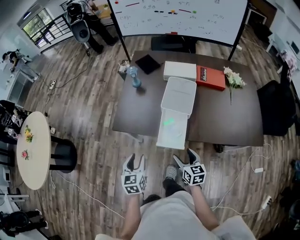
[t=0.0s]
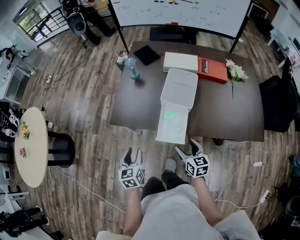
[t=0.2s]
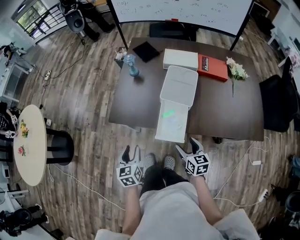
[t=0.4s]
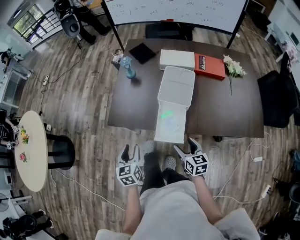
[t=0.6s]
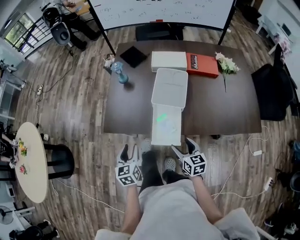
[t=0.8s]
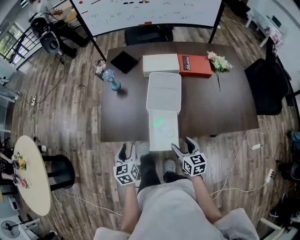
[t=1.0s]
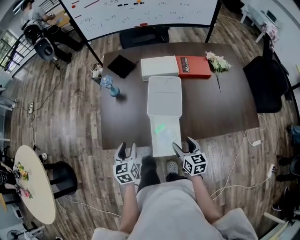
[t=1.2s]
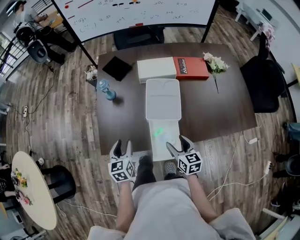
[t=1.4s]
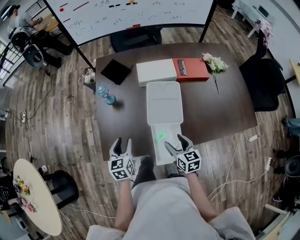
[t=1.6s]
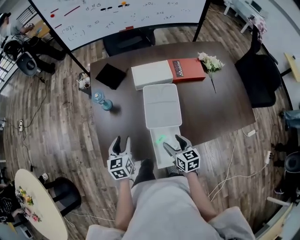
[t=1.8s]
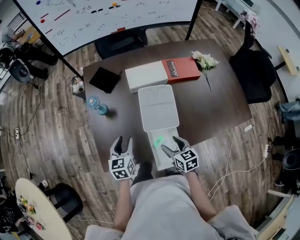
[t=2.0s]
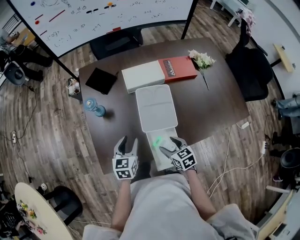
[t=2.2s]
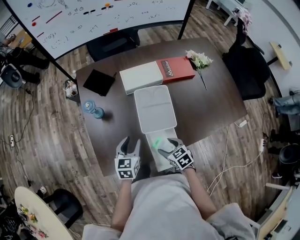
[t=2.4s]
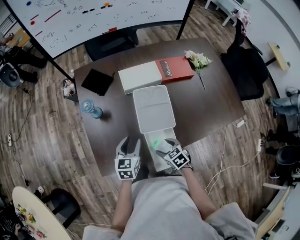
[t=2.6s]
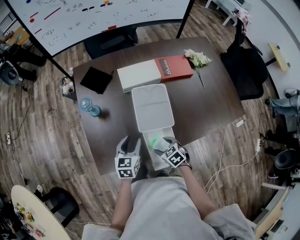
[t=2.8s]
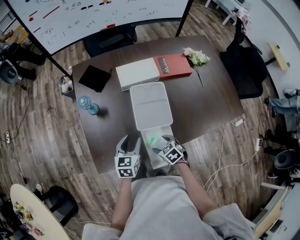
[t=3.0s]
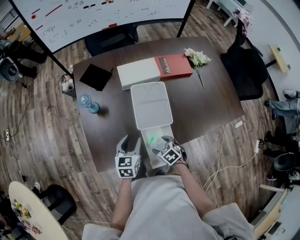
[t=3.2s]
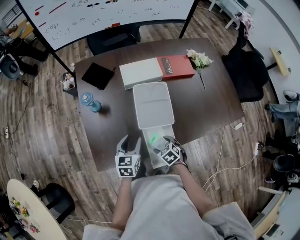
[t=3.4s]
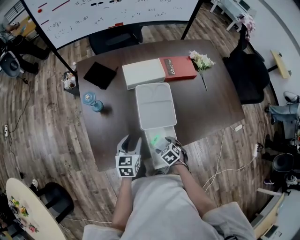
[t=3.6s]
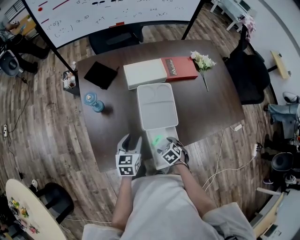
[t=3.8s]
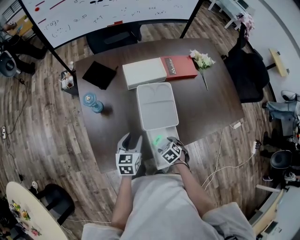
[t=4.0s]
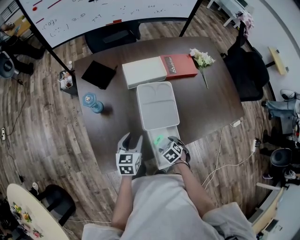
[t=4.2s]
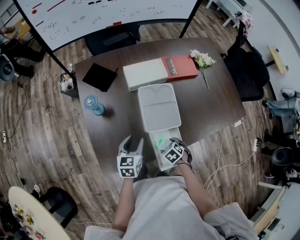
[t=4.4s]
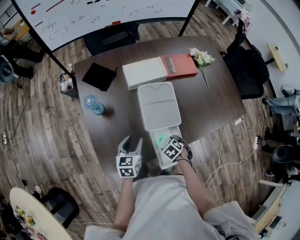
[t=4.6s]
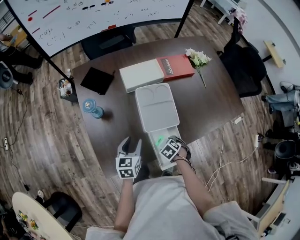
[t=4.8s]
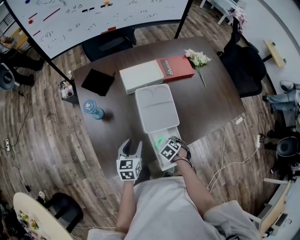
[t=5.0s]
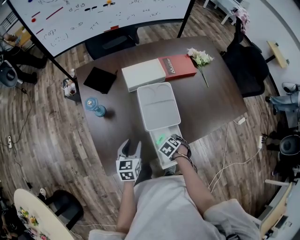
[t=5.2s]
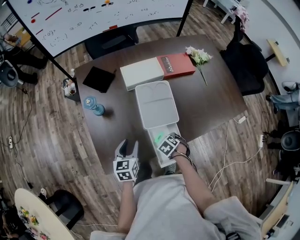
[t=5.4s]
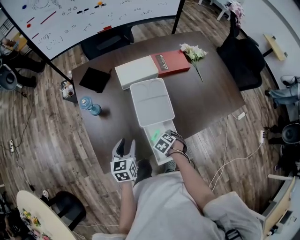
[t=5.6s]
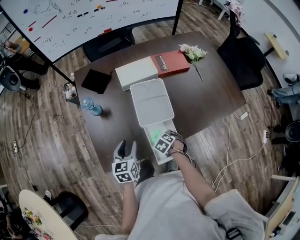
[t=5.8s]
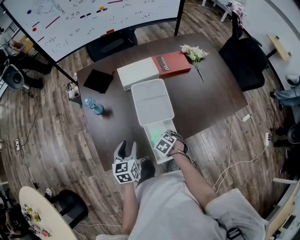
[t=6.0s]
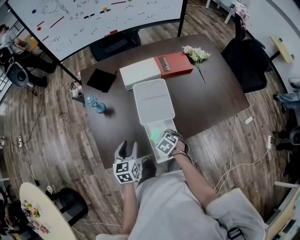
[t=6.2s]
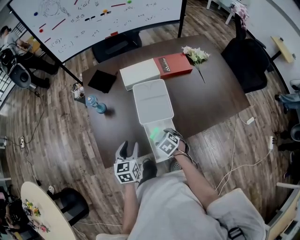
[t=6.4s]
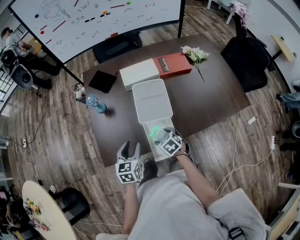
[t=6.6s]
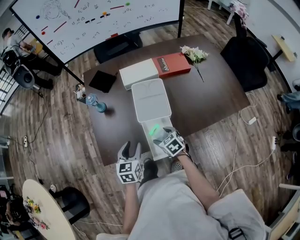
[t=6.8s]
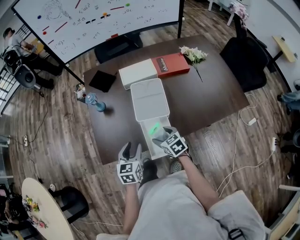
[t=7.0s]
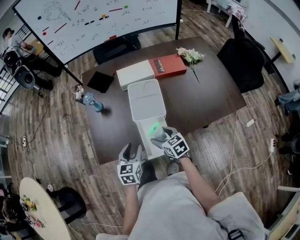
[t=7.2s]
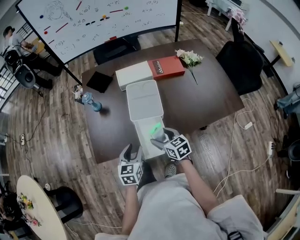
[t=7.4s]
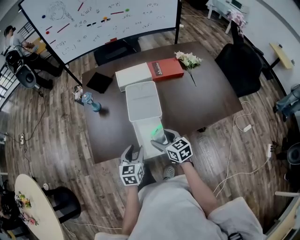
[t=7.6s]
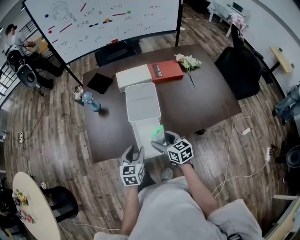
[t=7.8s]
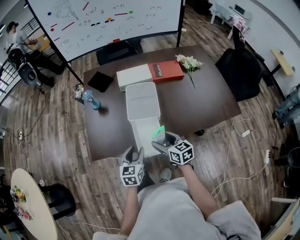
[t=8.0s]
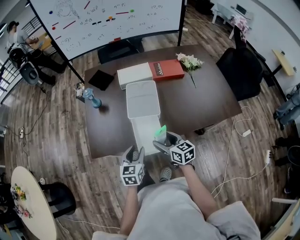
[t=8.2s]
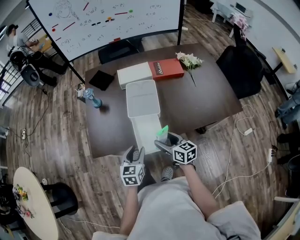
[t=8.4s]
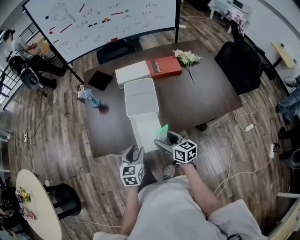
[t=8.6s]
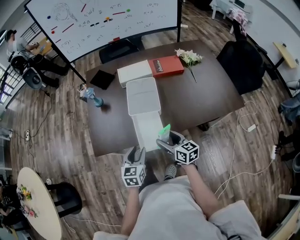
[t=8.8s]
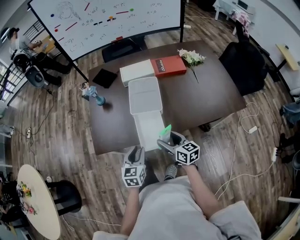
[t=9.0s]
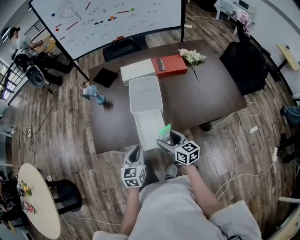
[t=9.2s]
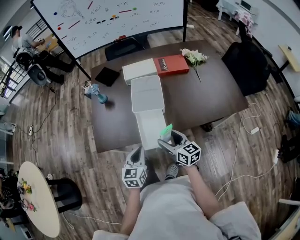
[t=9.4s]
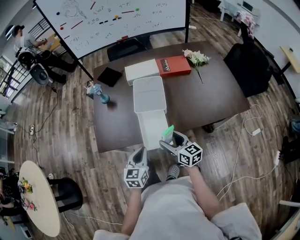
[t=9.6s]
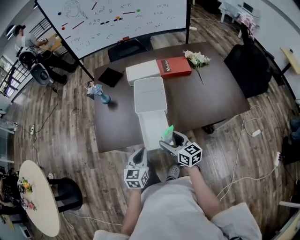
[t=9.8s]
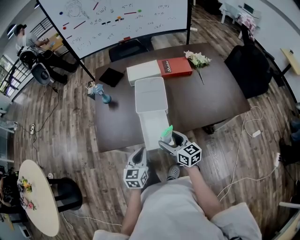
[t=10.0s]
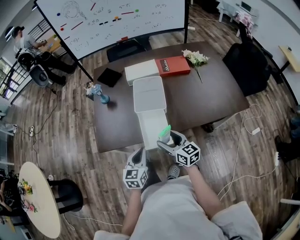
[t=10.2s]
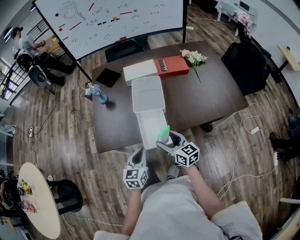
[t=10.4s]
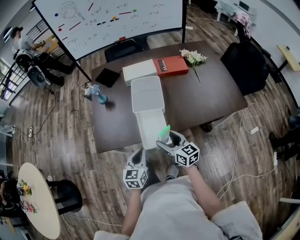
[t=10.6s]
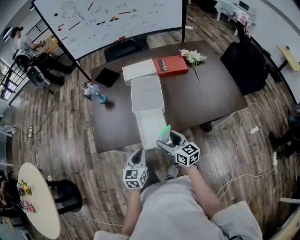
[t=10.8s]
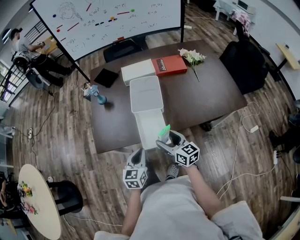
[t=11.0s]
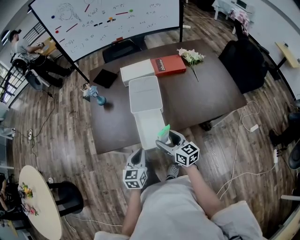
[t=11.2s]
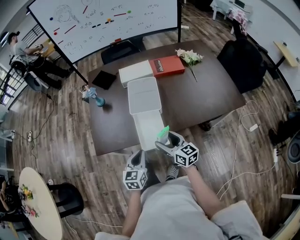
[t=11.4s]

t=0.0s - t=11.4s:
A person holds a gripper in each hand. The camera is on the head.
t=0.0s - t=1.4s: The right gripper goes approximately 15 cm forward. The left gripper heads forward, covering roughly 20 cm.
t=1.4s - t=2.8s: The right gripper moves downward, some 10 cm, and changes its angle by roughly 40 degrees; the left gripper travels to the right and forward by about 15 cm, and rotates some 30 degrees.
t=2.8s - t=4.2s: The right gripper travels downward by some 5 cm.
t=4.2s - t=5.6s: The grippers move only a little.
t=5.6s - t=7.2s: The right gripper moves upward, approximately 15 cm, and angles its fingers upward, by some 50 degrees, while the left gripper shifts by approximately 15 cm.
t=7.2s - t=8.6s: The right gripper shifts some 10 cm backward and to the right, and swivels some 30 degrees; the left gripper travels backward by approximately 5 cm.
t=8.6s - t=10.0s: The left gripper closes.
t=10.0s - t=11.4s: The grippers move only a little.

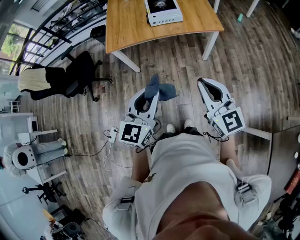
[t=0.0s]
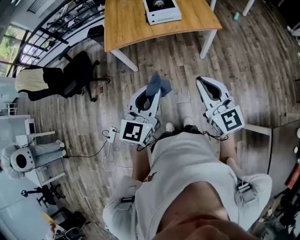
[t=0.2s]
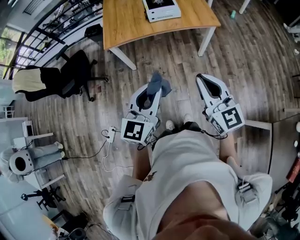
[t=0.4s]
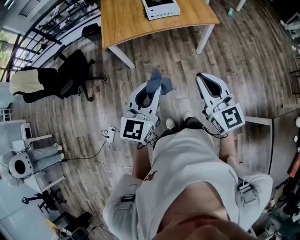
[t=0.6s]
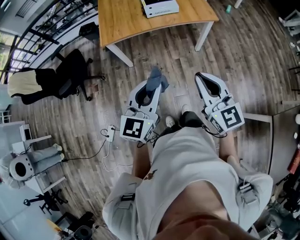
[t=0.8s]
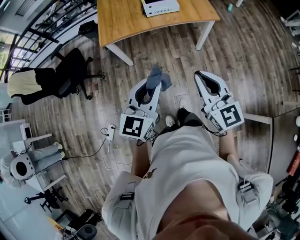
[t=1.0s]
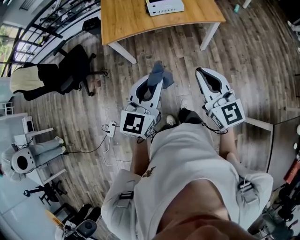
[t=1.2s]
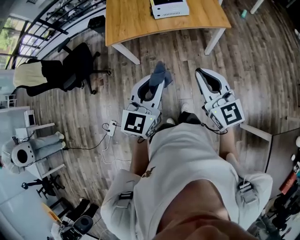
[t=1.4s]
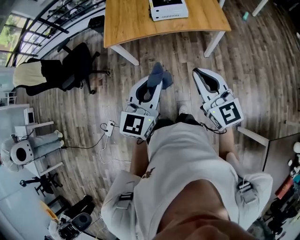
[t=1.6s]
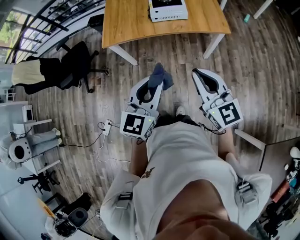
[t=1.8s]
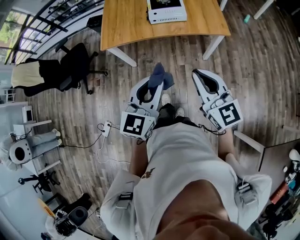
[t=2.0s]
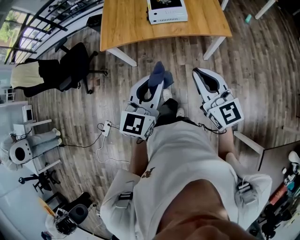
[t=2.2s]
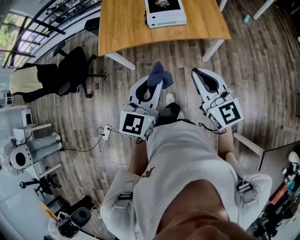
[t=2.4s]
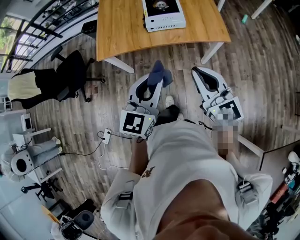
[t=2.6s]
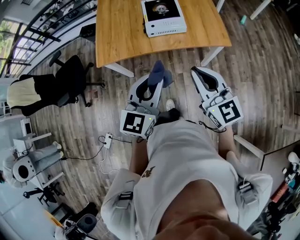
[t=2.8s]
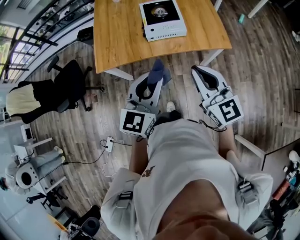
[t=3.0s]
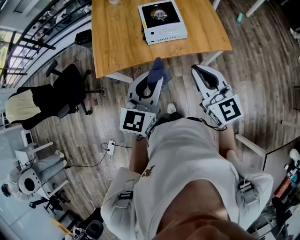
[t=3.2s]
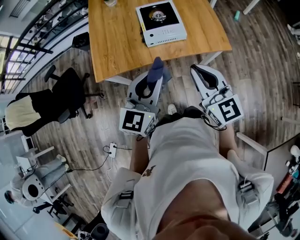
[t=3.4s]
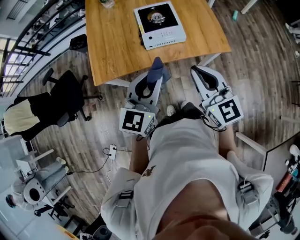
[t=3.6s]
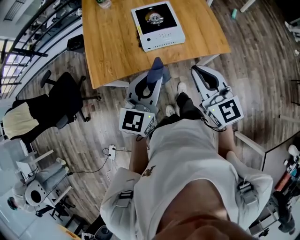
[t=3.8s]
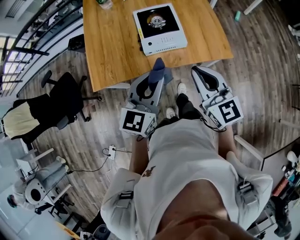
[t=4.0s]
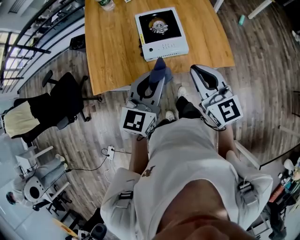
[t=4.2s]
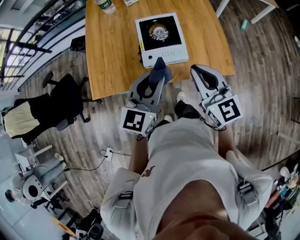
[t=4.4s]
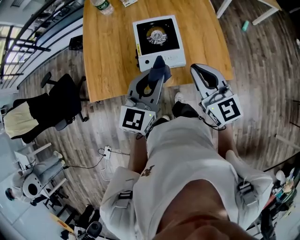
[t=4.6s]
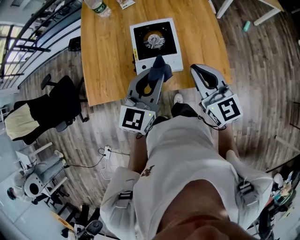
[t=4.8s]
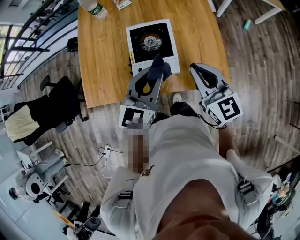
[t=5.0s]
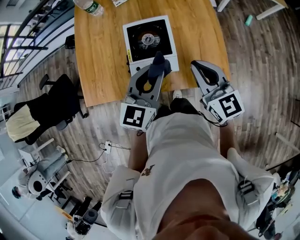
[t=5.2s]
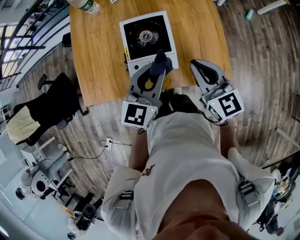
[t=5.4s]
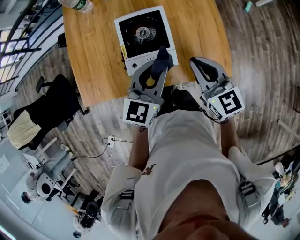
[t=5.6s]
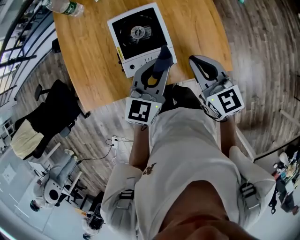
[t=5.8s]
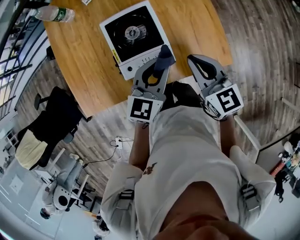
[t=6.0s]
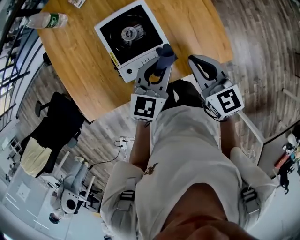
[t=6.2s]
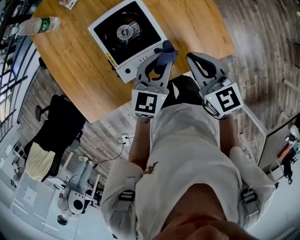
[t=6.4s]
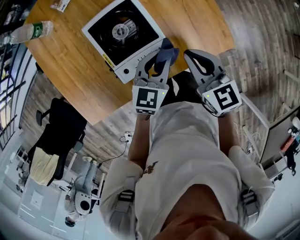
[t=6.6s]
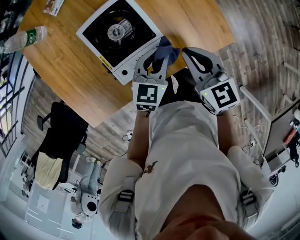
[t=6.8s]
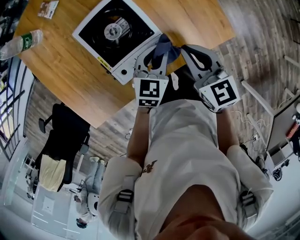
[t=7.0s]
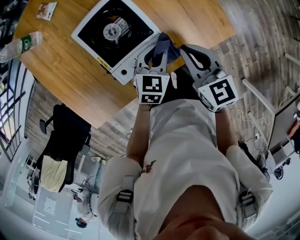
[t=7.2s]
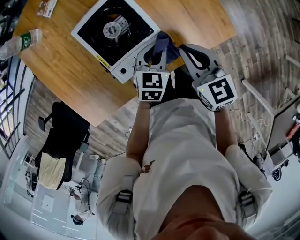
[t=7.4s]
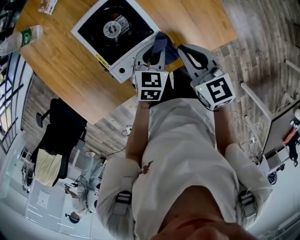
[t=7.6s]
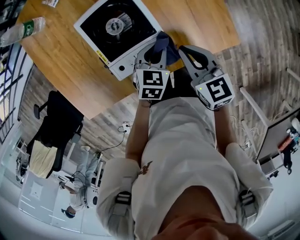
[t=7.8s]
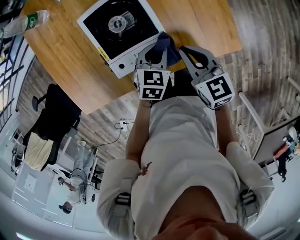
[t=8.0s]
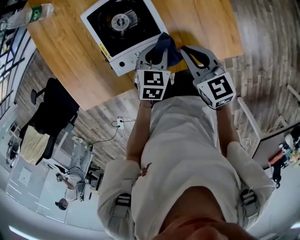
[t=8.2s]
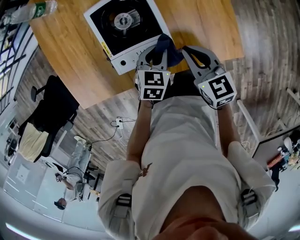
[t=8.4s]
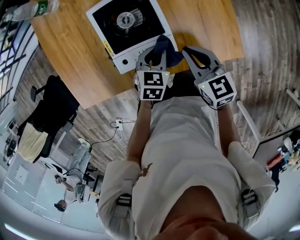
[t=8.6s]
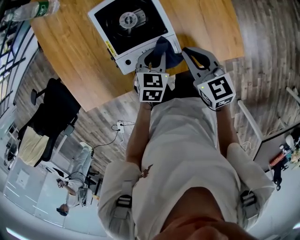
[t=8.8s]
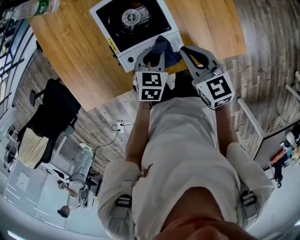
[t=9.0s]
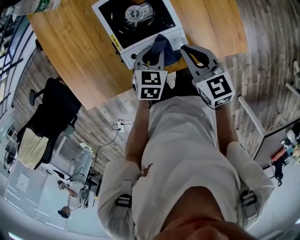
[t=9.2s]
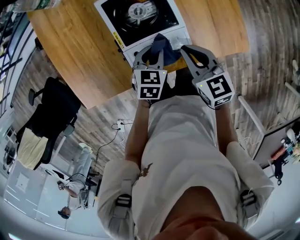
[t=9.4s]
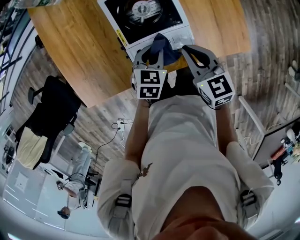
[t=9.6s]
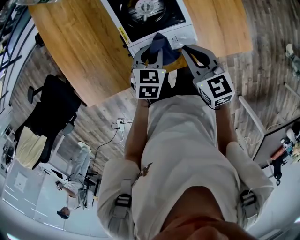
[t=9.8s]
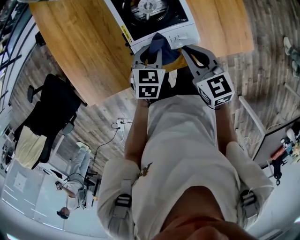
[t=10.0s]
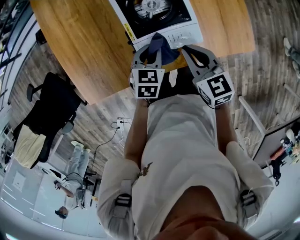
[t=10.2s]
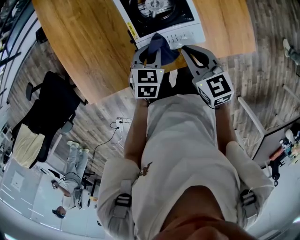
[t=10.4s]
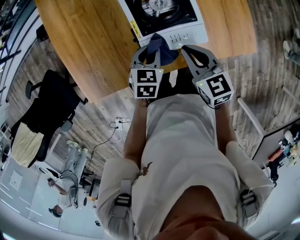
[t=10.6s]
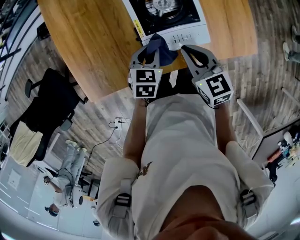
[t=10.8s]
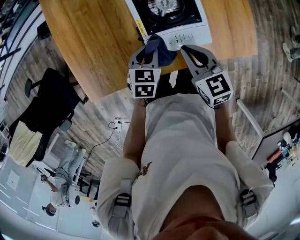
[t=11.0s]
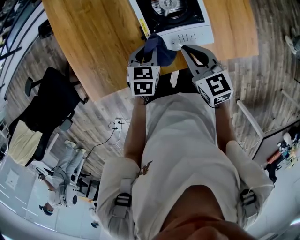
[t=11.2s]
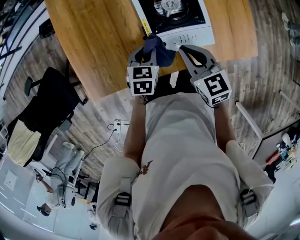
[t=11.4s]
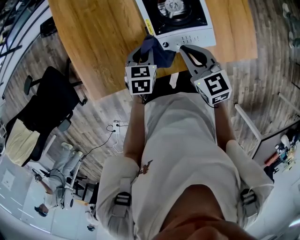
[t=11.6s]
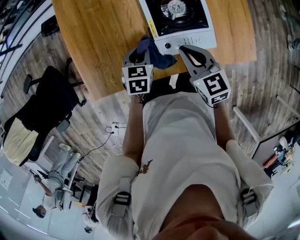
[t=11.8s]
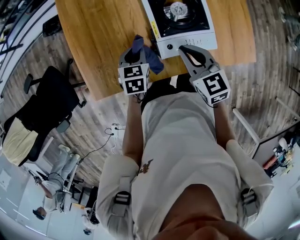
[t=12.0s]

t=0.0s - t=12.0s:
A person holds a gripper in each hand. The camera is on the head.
t=0.0s - t=1.6s: The two grippers go about 10 cm forward.
t=1.6s - t=3.0s: Both grippers move forward, roughly 20 cm.
t=3.0s - t=4.4s: The grippers both shift forward by about 20 cm.
t=4.4s - t=6.0s: The two grippers go about 20 cm forward, downward and to the right.
t=6.0s - t=7.6s: The right gripper travels downward by some 10 cm, while the left gripper goes some 15 cm downward, and changes its angle by roughly 30 degrees.
t=7.6s - t=9.0s: The left gripper goes roughly 5 cm to the left.
t=9.0s - t=10.4s: The two grippers go some 10 cm to the left.
t=10.4s - t=12.0s: The left gripper is displaced to the left by roughly 15 cm; the right gripper moves to the left, roughly 10 cm.
